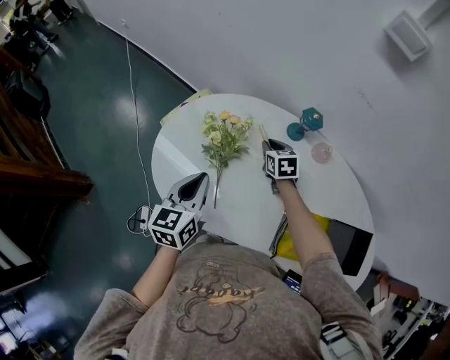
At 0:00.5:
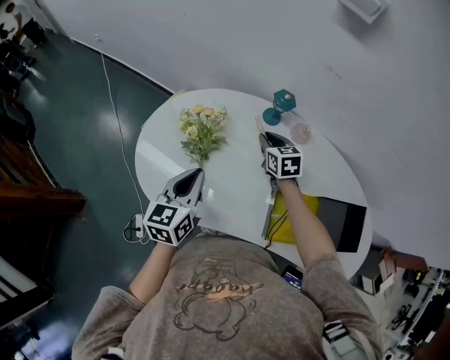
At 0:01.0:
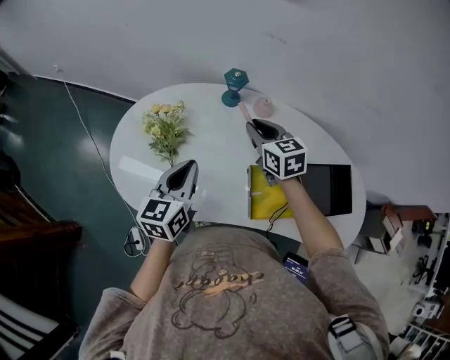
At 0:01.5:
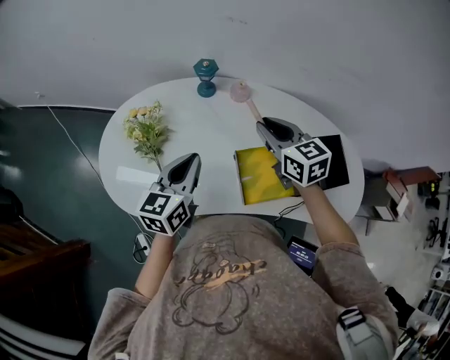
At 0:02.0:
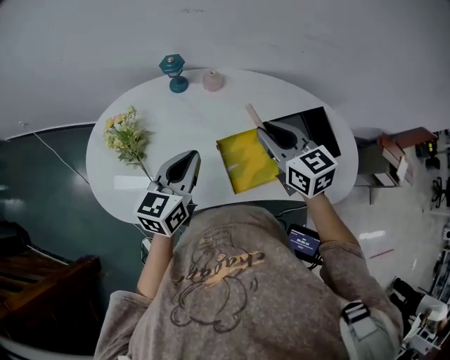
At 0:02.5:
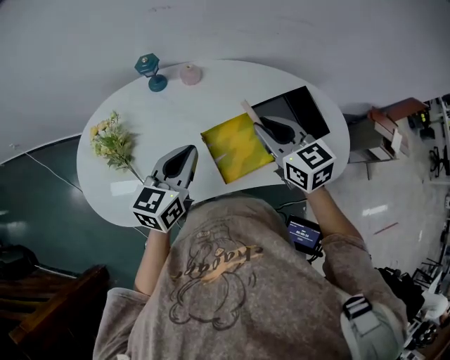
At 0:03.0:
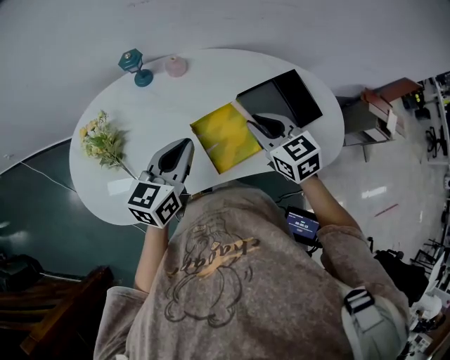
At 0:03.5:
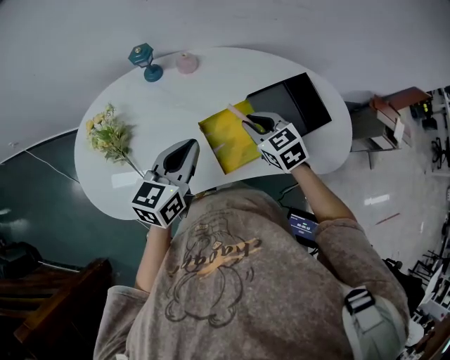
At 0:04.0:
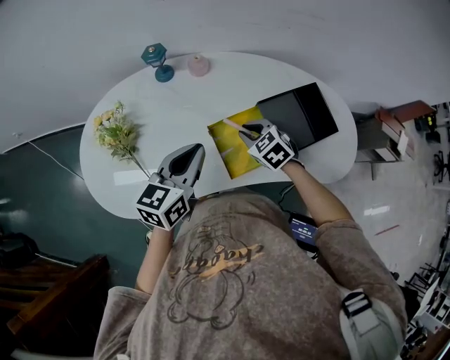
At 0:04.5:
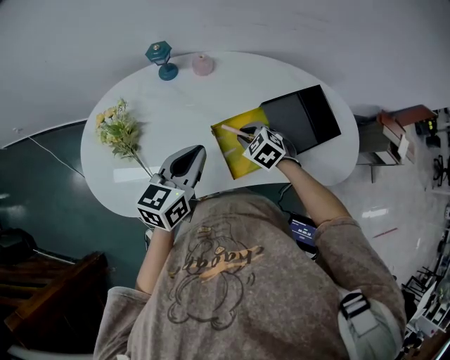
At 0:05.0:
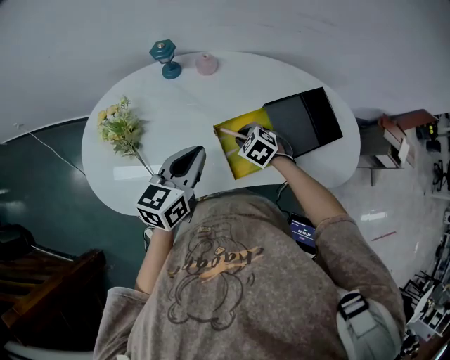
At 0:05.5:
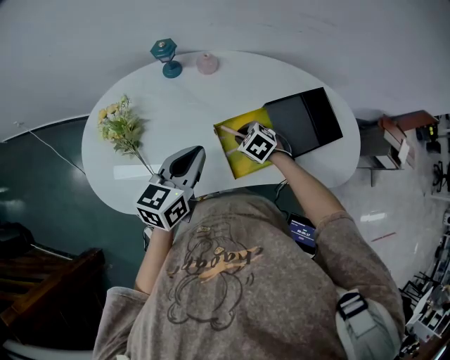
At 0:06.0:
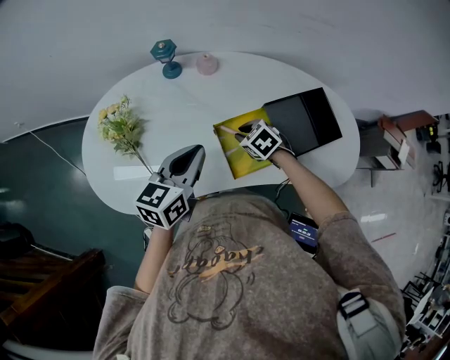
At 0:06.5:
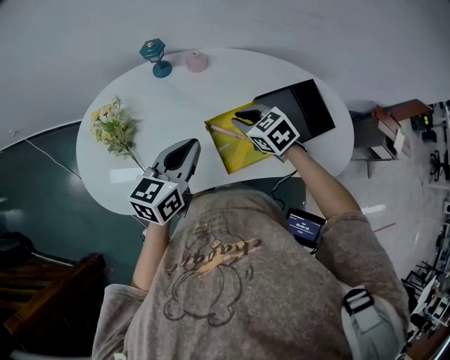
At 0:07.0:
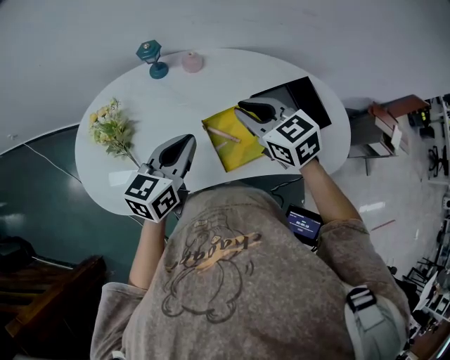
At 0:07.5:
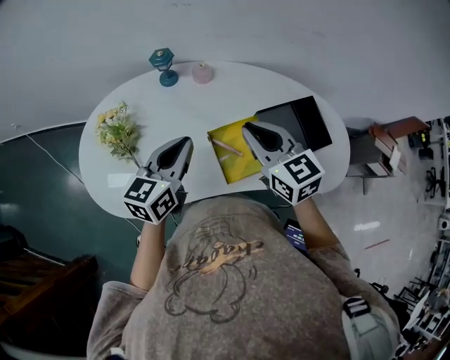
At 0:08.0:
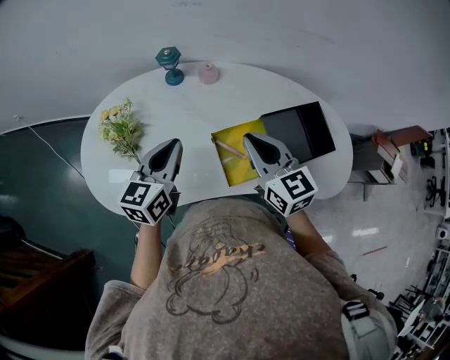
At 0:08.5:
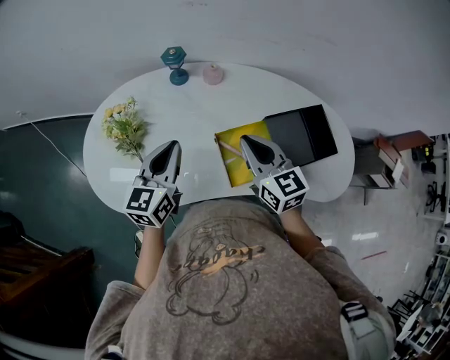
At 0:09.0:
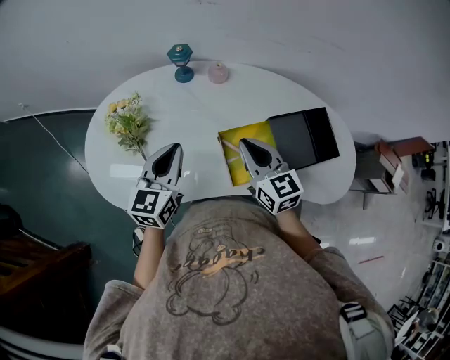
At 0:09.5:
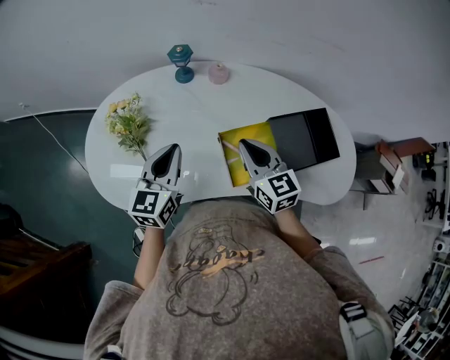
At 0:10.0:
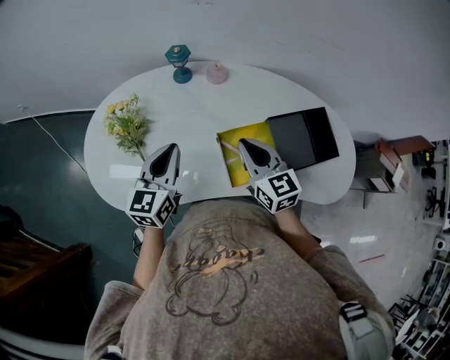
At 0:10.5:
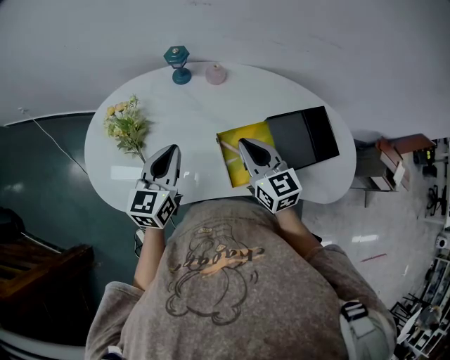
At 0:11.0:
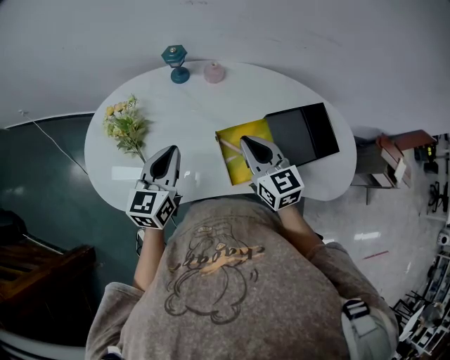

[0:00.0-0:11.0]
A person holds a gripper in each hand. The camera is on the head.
0:00.0 to 0:02.0: The left gripper ends up roughly 25 cm from where it was, and turns by some 40 degrees; the right gripper ends up about 40 cm from where it was, and rotates some 30 degrees.
0:02.0 to 0:03.5: The right gripper goes approximately 10 cm downward, while the left gripper shifts some 5 cm to the right.
0:03.5 to 0:05.5: The right gripper goes approximately 15 cm downward and to the left, and rotates roughly 30 degrees.
0:05.5 to 0:07.5: The right gripper shifts some 25 cm upward, and points its fingers about 50 degrees further upward.
0:07.5 to 0:09.0: The left gripper moves to the left, about 5 cm, while the right gripper moves downward, some 5 cm.
0:09.0 to 0:11.0: The grippers stay close to where they were, moving slightly.

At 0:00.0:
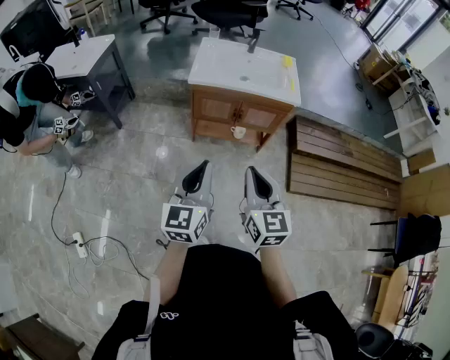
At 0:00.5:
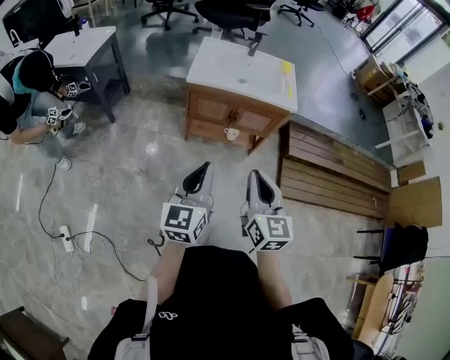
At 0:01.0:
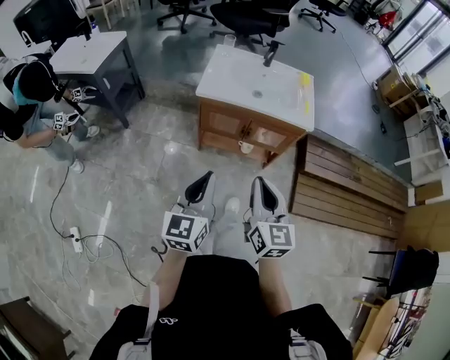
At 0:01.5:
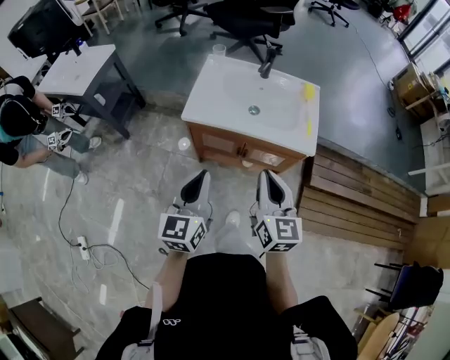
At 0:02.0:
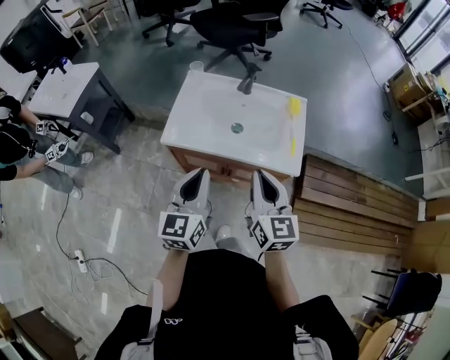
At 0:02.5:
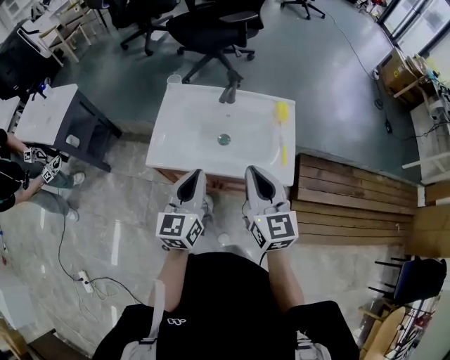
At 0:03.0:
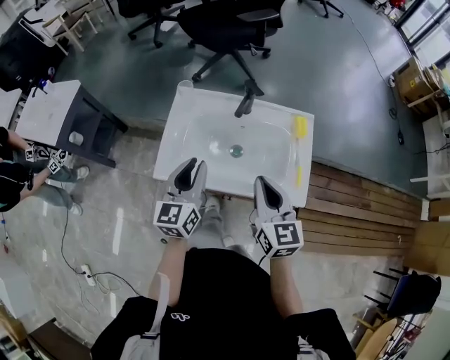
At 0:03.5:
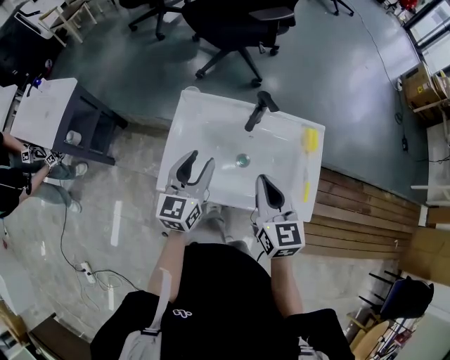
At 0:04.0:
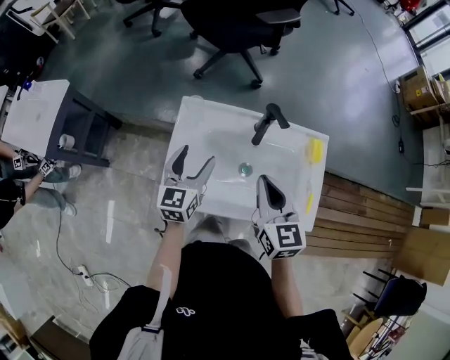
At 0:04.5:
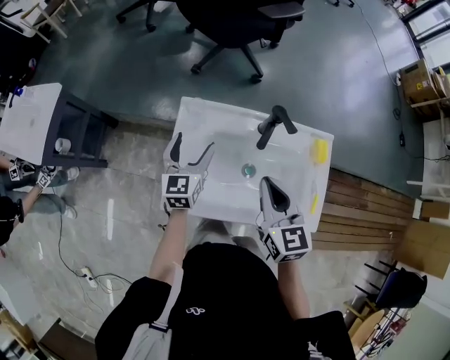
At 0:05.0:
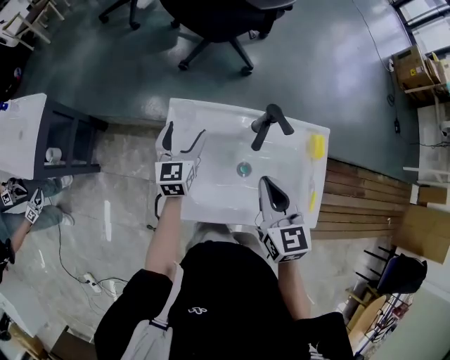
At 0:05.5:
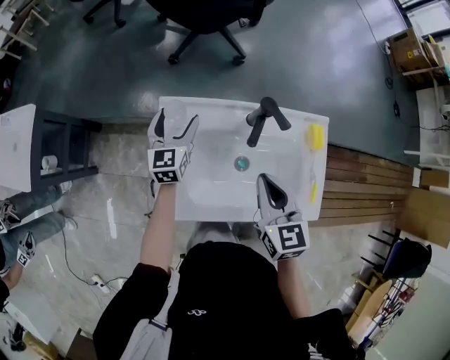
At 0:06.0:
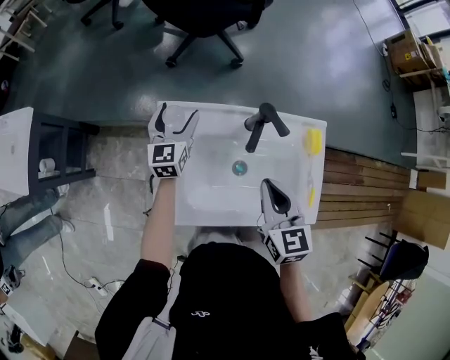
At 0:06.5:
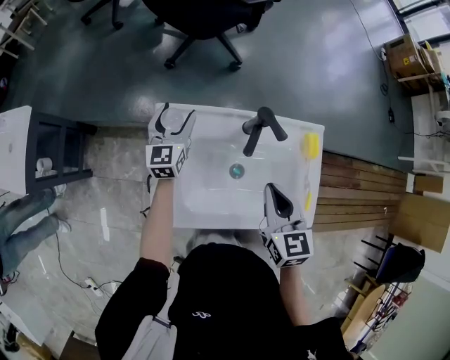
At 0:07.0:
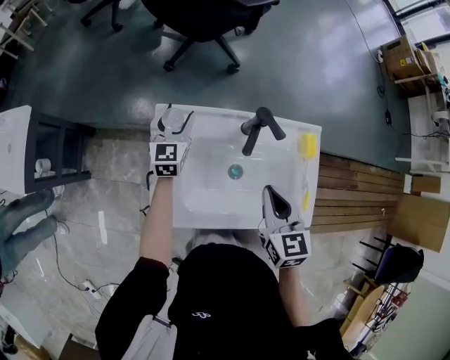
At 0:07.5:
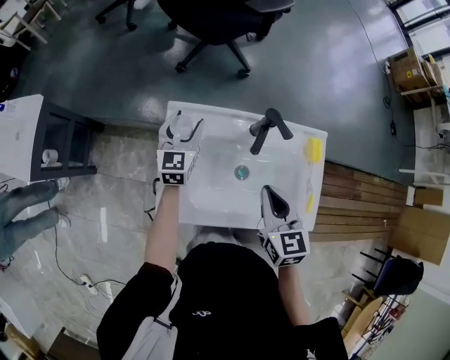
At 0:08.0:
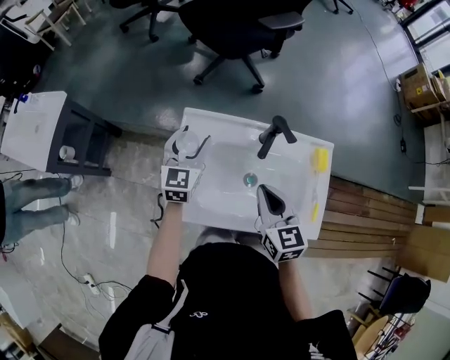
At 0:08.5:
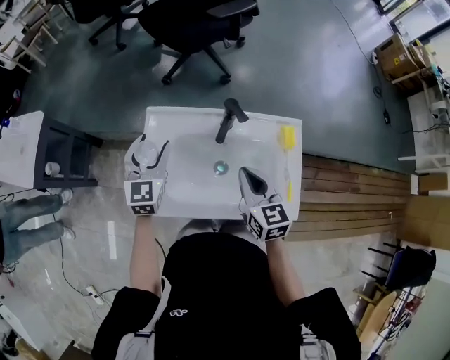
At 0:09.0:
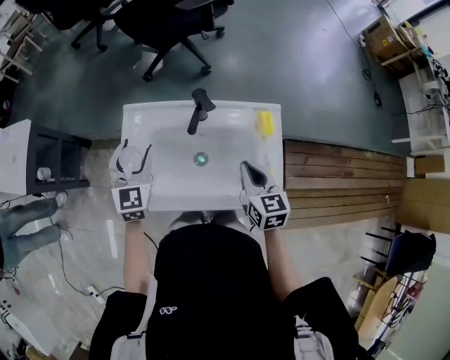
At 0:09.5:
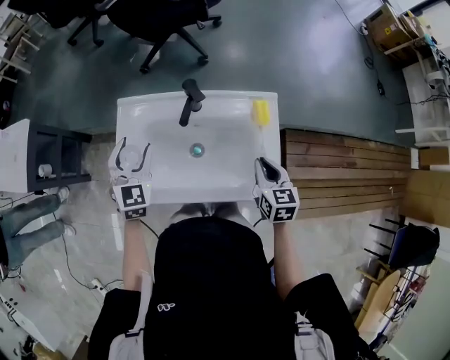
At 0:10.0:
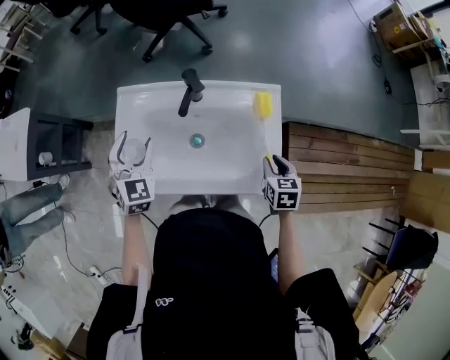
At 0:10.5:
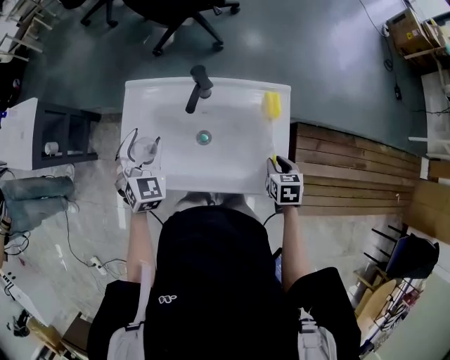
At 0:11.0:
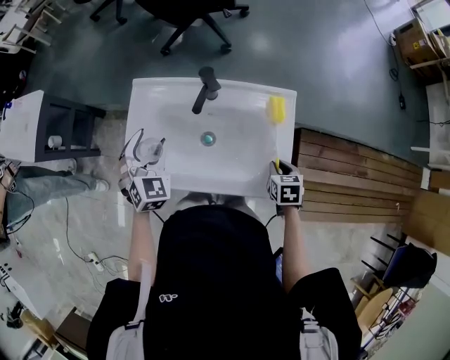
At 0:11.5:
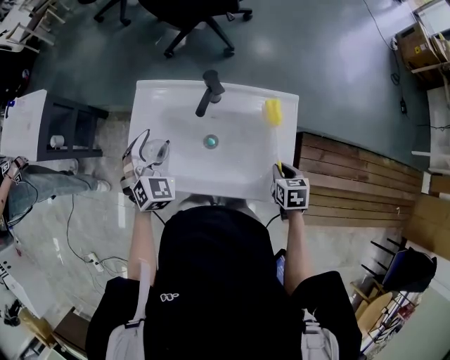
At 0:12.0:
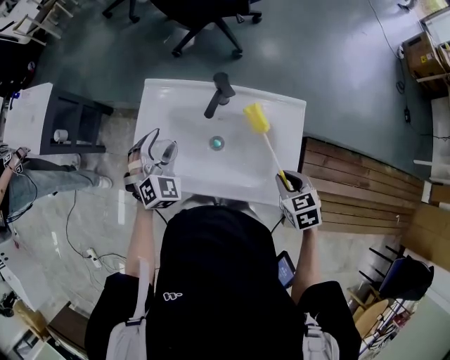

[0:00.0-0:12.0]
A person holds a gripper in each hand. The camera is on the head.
0:00.0 to 0:02.0: The two grippers go about 35 cm forward.
0:02.0 to 0:04.0: Both grippers travel together forward, roughly 30 cm. The left gripper opens up.
0:04.0 to 0:06.0: The right gripper moves about 5 cm, while the left gripper goes roughly 20 cm forward.
0:06.0 to 0:08.0: The left gripper travels backward and upward by roughly 10 cm.
0:08.0 to 0:10.0: The left gripper heads backward and to the right, covering approximately 10 cm, and swivels about 30 degrees. Meanwhile the right gripper goes some 30 cm to the right and downward, turns by about 30 degrees, and opens up.
0:10.0 to 0:12.0: The right gripper shifts by some 5 cm, and rotates about 30 degrees.

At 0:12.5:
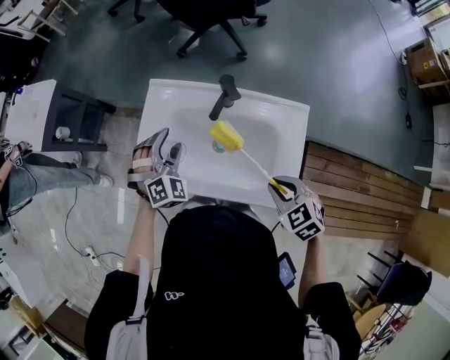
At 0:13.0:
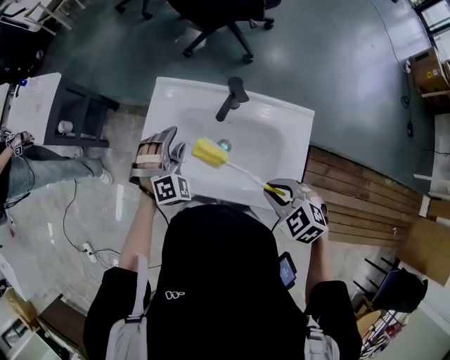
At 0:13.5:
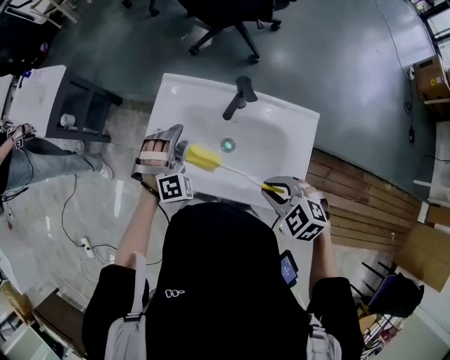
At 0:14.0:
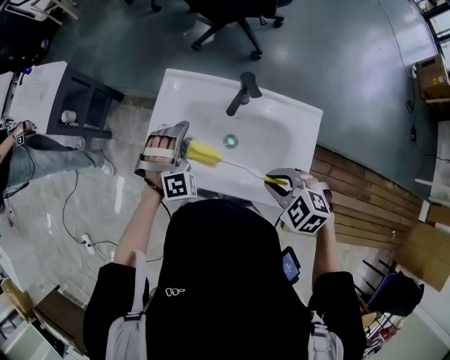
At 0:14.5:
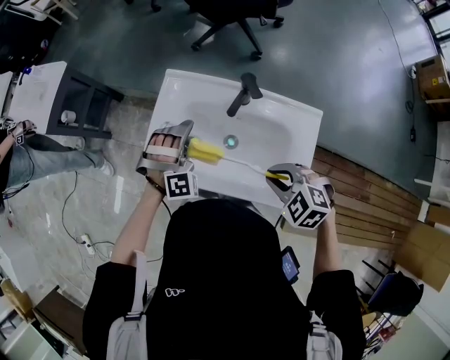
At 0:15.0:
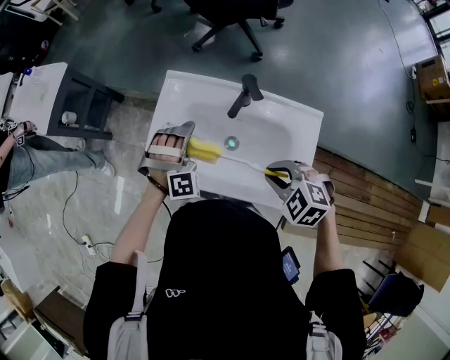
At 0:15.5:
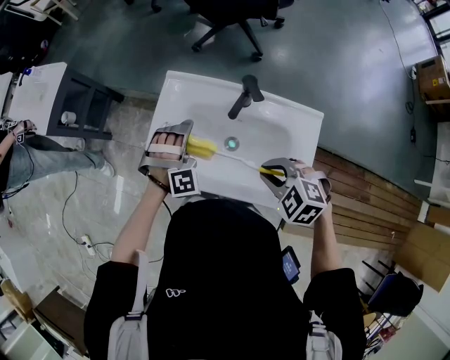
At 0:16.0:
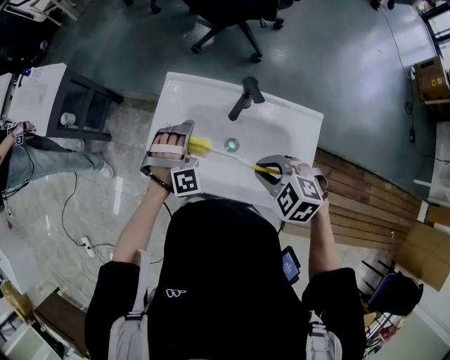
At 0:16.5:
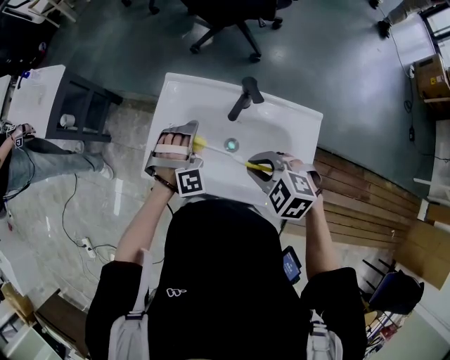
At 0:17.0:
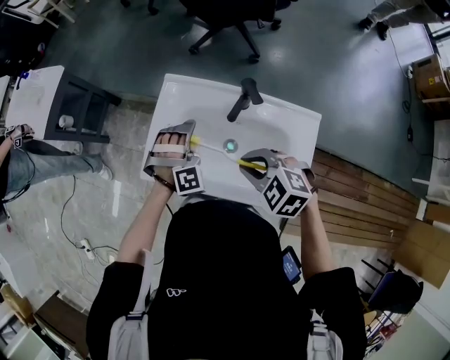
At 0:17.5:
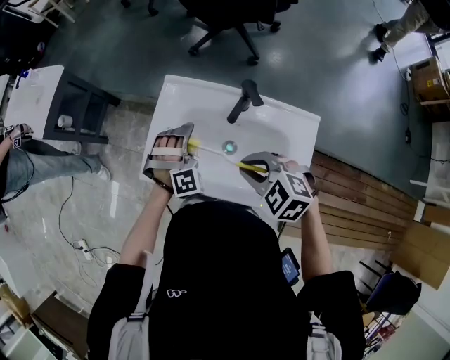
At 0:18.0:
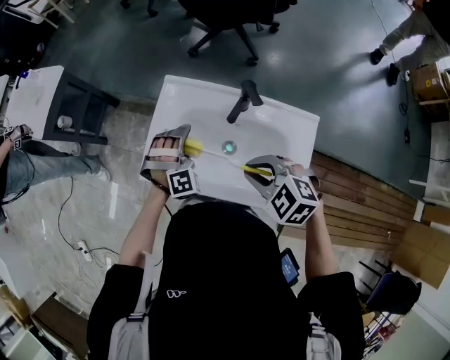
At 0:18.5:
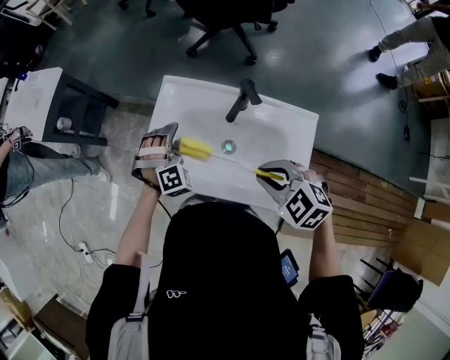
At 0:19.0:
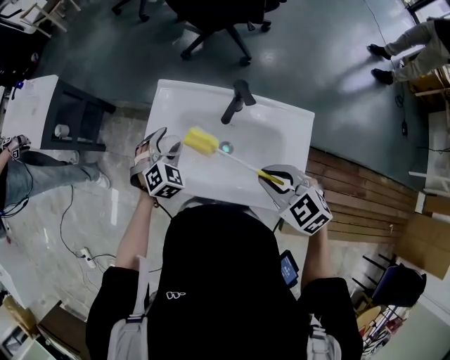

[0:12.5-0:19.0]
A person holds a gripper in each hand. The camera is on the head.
0:12.5 to 0:14.5: The right gripper shifts by some 5 cm, and rotates about 30 degrees. The left gripper swivels roughly 20 degrees.
0:14.5 to 0:17.0: The right gripper heads forward, covering some 10 cm.
0:17.0 to 0:19.0: The left gripper moves approximately 5 cm, and changes its angle by approximately 40 degrees; the right gripper changes place by roughly 5 cm.
